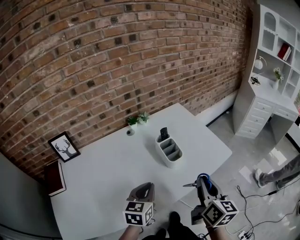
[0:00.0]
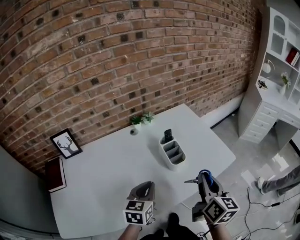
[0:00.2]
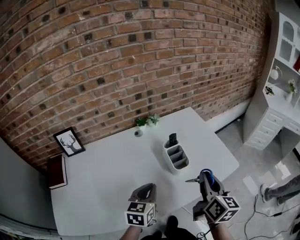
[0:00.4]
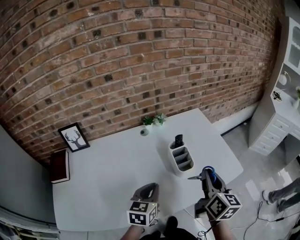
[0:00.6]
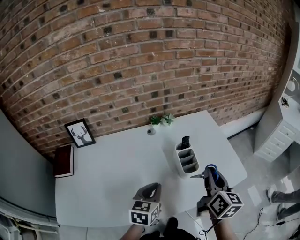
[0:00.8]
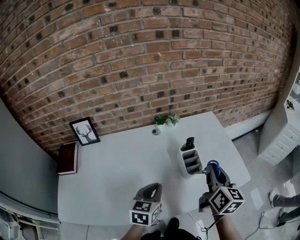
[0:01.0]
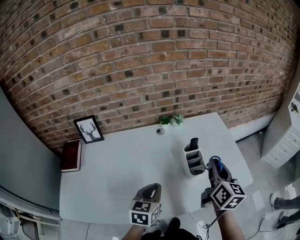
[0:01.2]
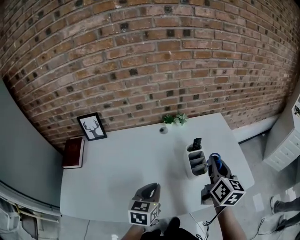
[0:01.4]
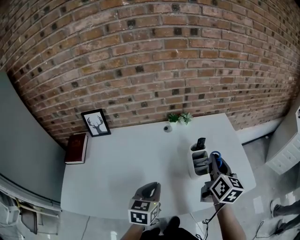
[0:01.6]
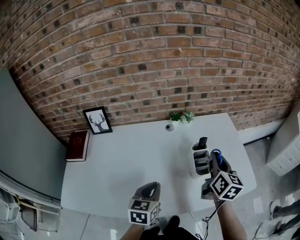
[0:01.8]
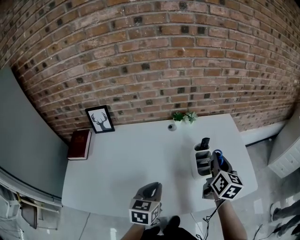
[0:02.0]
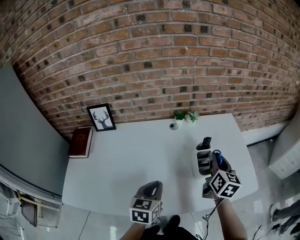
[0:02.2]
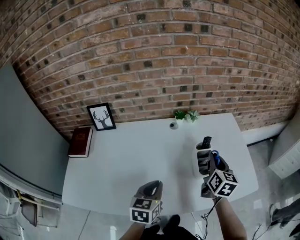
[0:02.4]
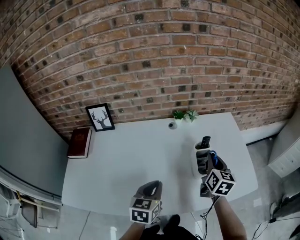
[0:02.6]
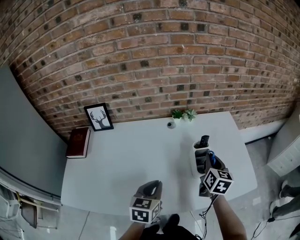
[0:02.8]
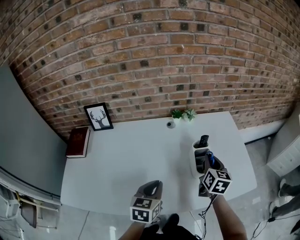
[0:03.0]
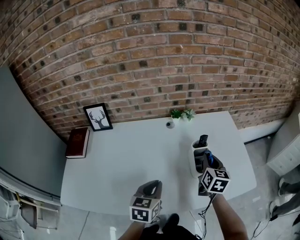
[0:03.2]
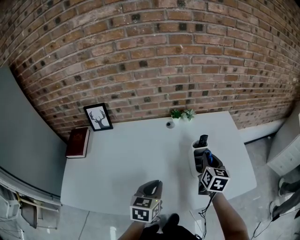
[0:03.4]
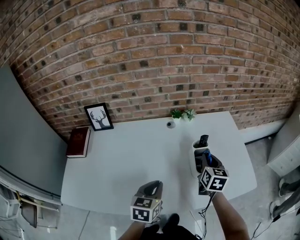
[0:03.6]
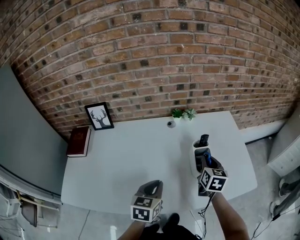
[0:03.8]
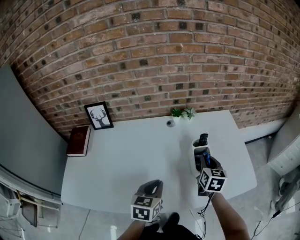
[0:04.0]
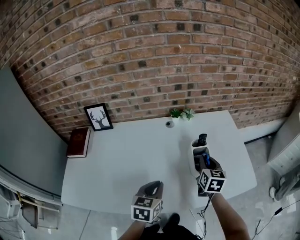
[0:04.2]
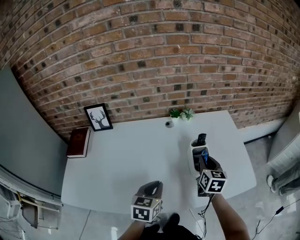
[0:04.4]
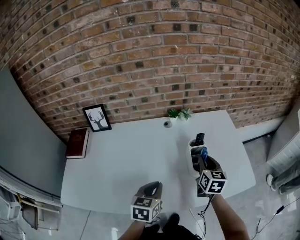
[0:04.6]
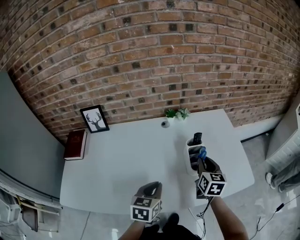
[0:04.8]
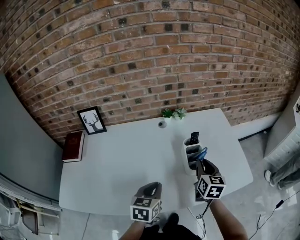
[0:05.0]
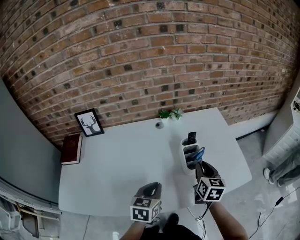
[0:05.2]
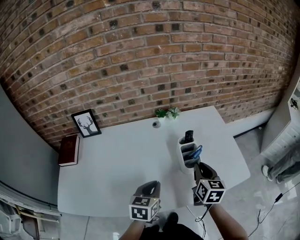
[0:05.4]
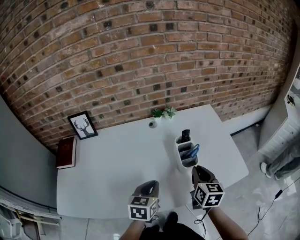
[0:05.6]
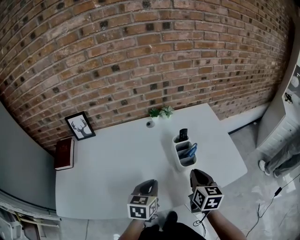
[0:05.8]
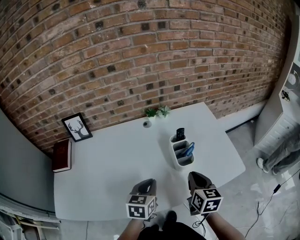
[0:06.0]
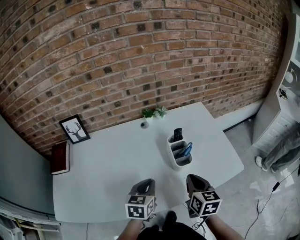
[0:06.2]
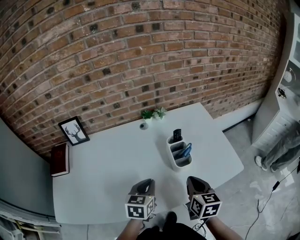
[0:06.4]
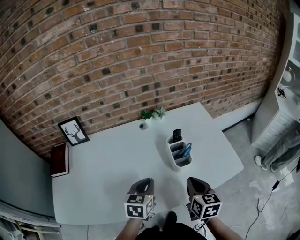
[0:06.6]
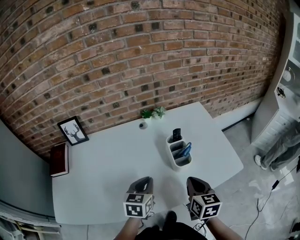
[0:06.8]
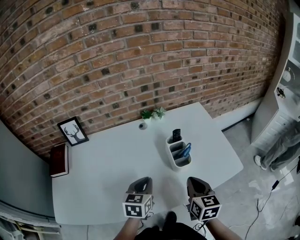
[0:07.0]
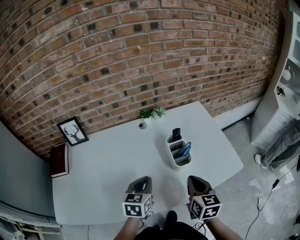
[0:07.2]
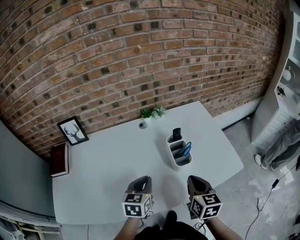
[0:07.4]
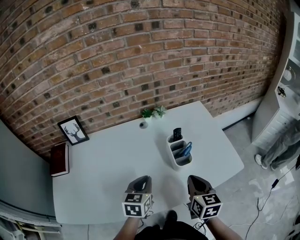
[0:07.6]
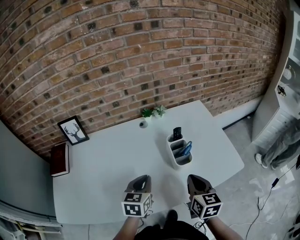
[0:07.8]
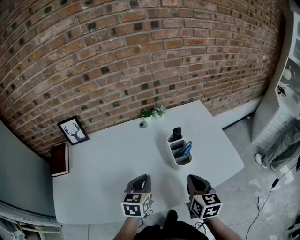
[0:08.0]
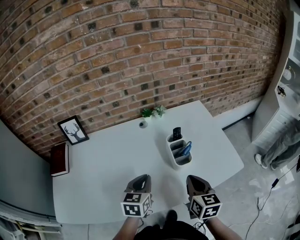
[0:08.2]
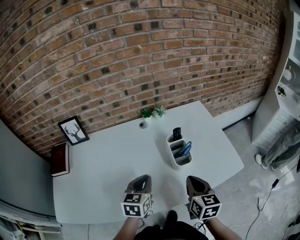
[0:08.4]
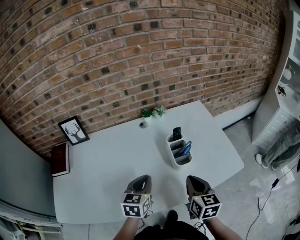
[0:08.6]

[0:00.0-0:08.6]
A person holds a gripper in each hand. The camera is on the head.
0.0 to 1.4 s: The left gripper shifts by about 5 cm, while the right gripper heads forward, covering some 20 cm.
1.4 to 2.8 s: The right gripper is displaced downward by about 10 cm.
2.8 to 4.4 s: The grippers make only small movements.
4.4 to 5.8 s: The right gripper goes approximately 10 cm backward.
5.8 to 7.2 s: The grippers make only small movements.
7.2 to 8.6 s: Both grippers stay about where they are.

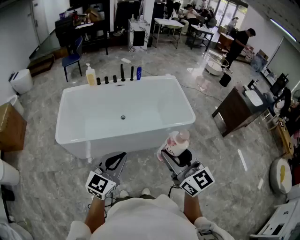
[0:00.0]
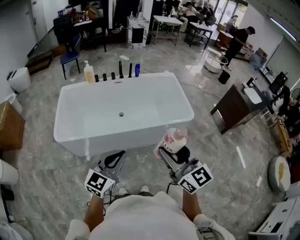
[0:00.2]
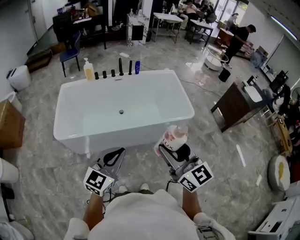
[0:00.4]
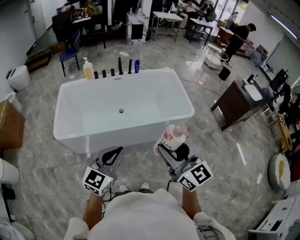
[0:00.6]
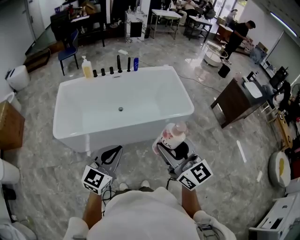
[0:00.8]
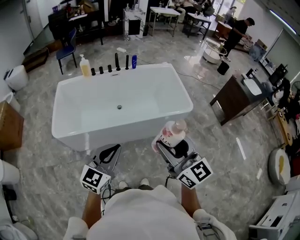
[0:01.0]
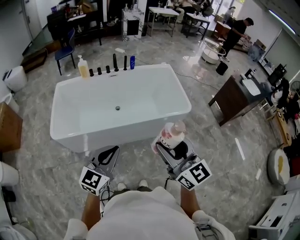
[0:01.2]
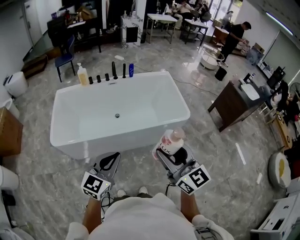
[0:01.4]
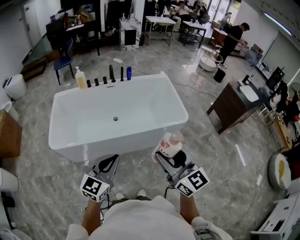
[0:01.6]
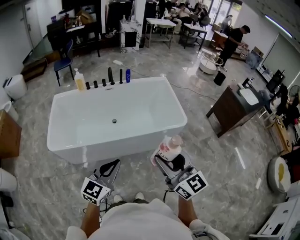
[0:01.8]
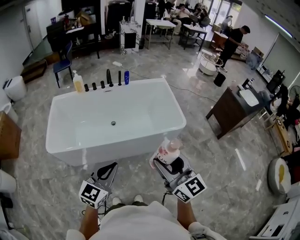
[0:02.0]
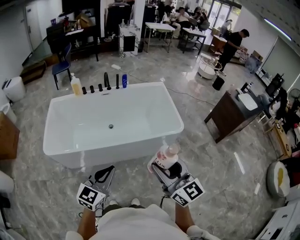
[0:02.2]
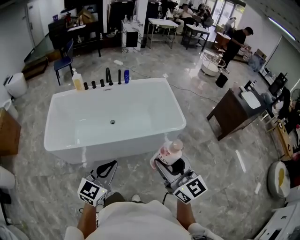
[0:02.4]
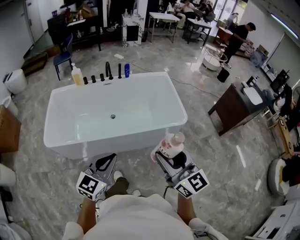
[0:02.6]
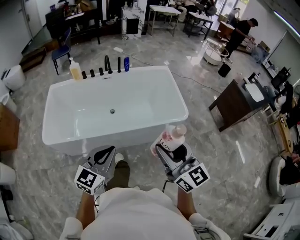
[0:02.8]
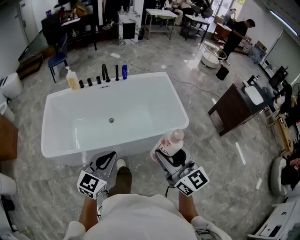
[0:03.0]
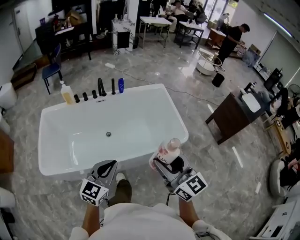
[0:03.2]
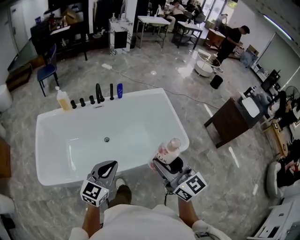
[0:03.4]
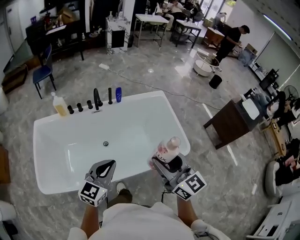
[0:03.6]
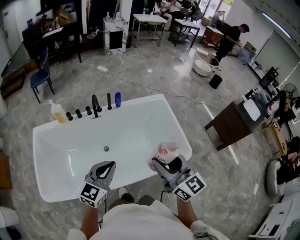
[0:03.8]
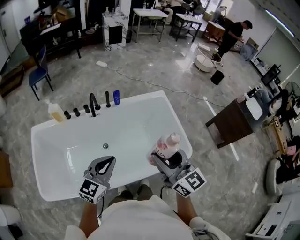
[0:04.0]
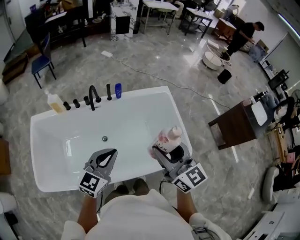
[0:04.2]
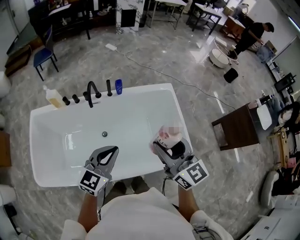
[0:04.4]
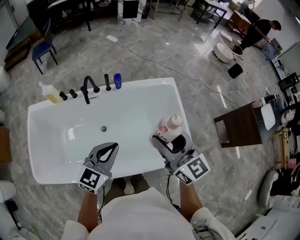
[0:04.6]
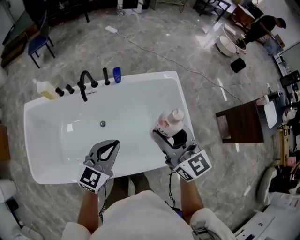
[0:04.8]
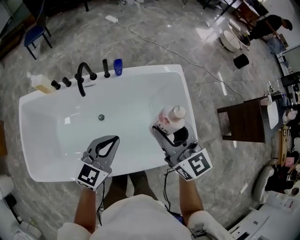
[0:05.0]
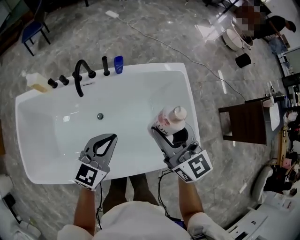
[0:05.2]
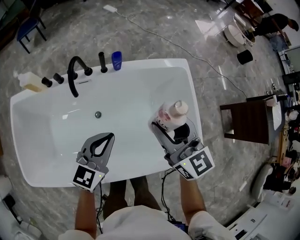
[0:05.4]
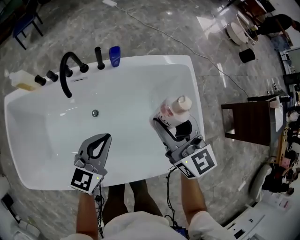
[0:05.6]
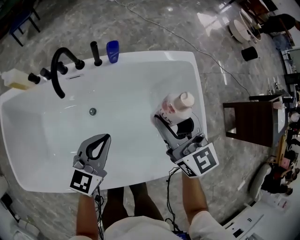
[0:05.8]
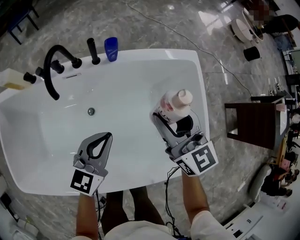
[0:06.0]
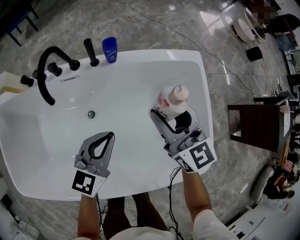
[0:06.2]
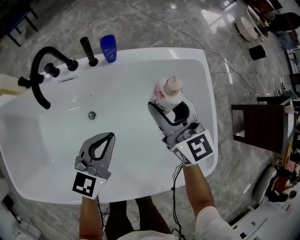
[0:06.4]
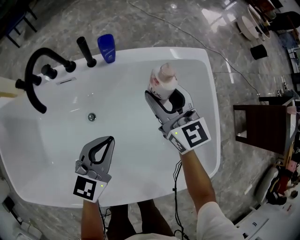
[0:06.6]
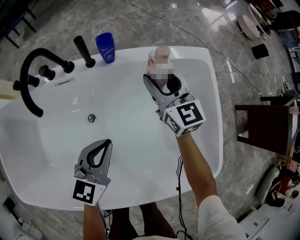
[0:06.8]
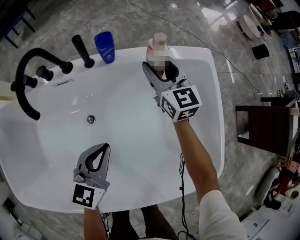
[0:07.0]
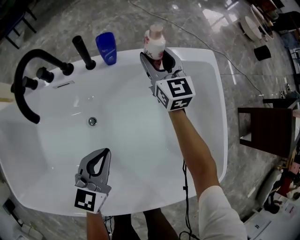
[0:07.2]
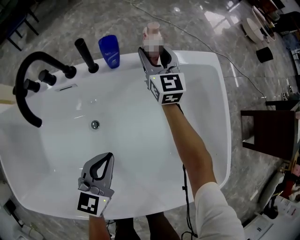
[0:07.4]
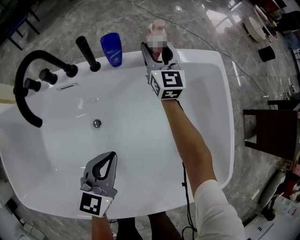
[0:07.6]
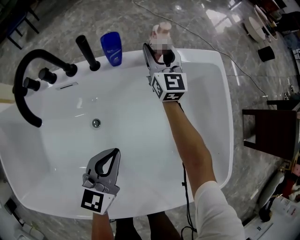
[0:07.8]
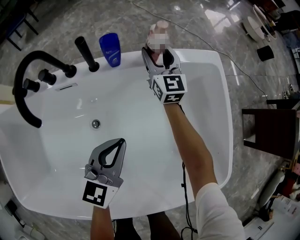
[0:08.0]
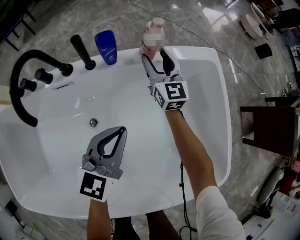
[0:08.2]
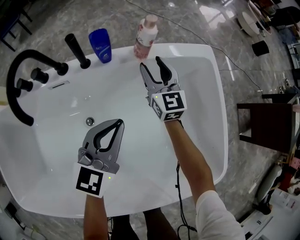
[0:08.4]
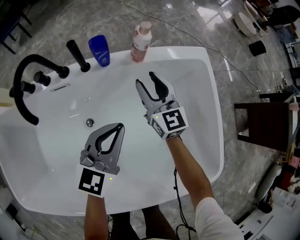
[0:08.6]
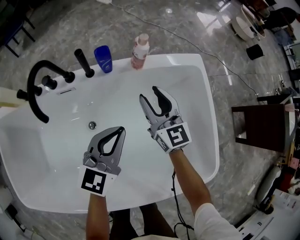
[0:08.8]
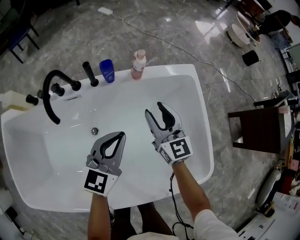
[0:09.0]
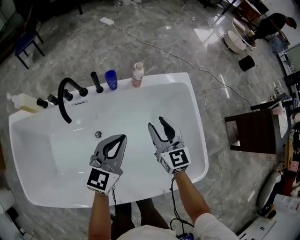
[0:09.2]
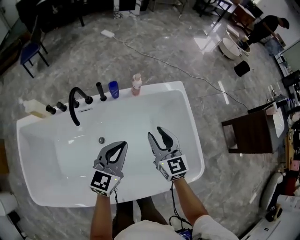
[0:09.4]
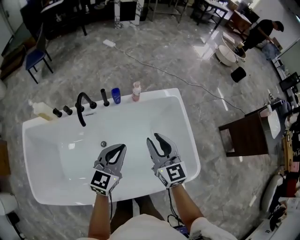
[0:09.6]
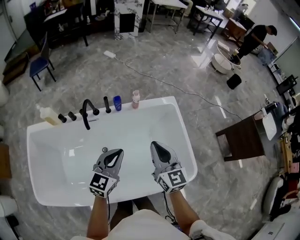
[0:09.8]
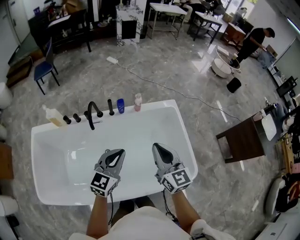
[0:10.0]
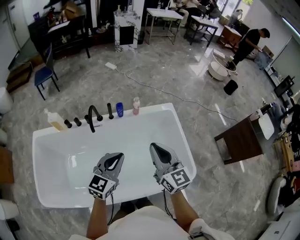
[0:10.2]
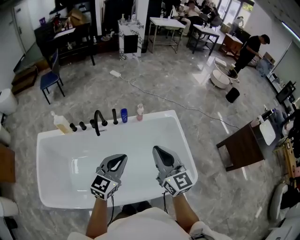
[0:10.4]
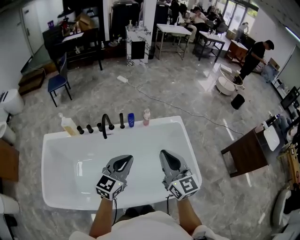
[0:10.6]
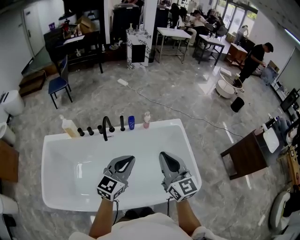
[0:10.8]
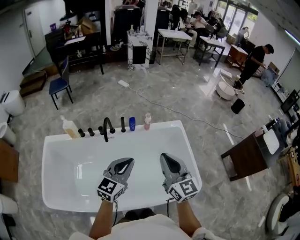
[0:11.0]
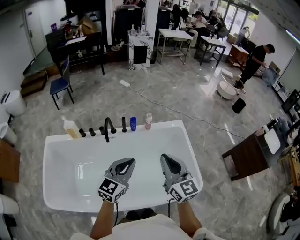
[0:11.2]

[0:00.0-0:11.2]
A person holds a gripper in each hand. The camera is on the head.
0.0 to 1.6 s: The grippers make only small movements.
1.6 to 3.2 s: Both grippers travel together forward, approximately 20 cm.
3.2 to 4.8 s: Both grippers travel together forward, some 40 cm.
4.8 to 6.4 s: Both grippers travel together downward and forward, about 35 cm.
6.4 to 8.0 s: The right gripper travels forward and downward by about 25 cm. The left gripper is displaced downward by some 5 cm.
8.0 to 9.6 s: The left gripper goes approximately 25 cm upward. Meanwhile the right gripper shifts some 50 cm backward and upward, and closes.
9.6 to 11.2 s: The grippers both shift upward and backward by about 20 cm. The right gripper closes.

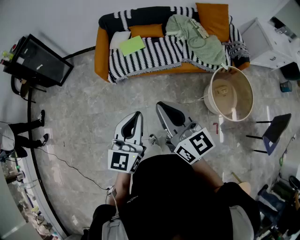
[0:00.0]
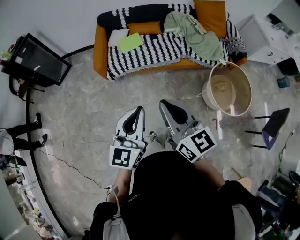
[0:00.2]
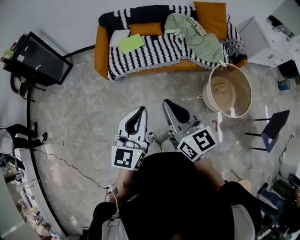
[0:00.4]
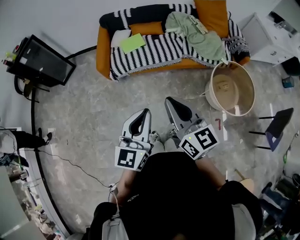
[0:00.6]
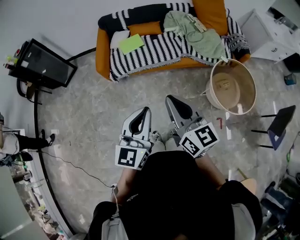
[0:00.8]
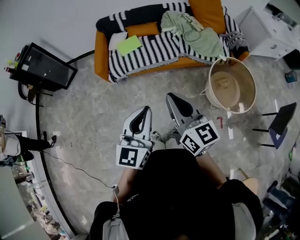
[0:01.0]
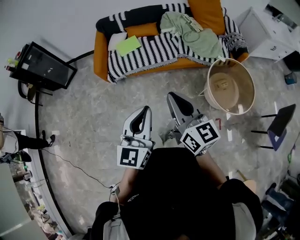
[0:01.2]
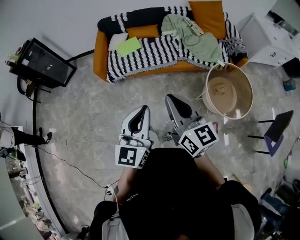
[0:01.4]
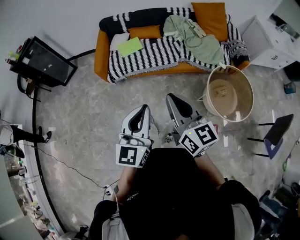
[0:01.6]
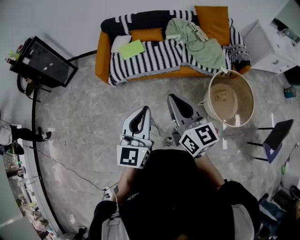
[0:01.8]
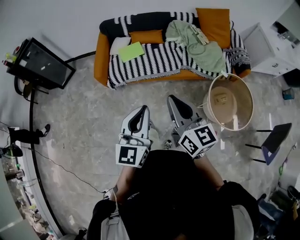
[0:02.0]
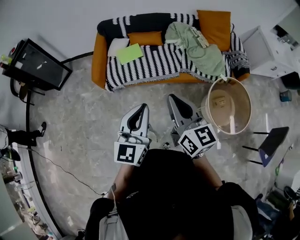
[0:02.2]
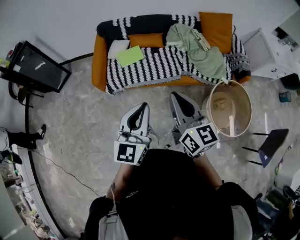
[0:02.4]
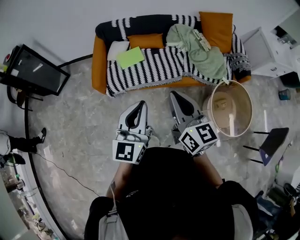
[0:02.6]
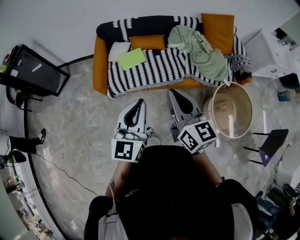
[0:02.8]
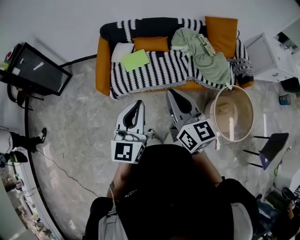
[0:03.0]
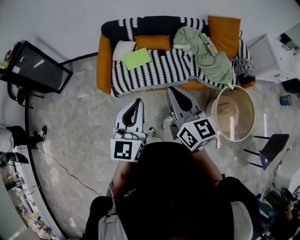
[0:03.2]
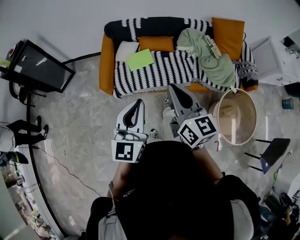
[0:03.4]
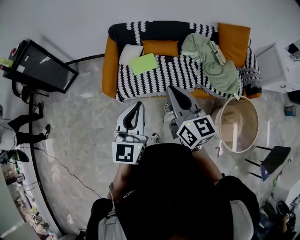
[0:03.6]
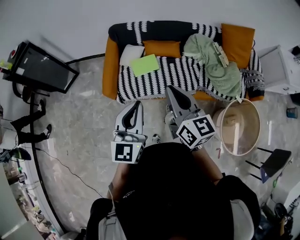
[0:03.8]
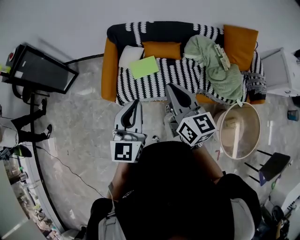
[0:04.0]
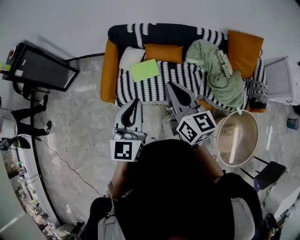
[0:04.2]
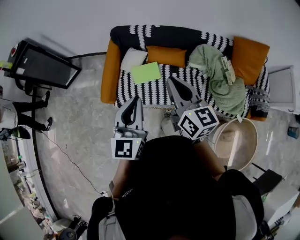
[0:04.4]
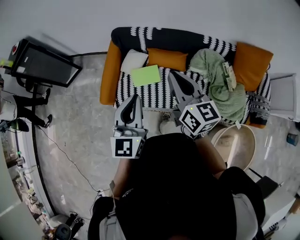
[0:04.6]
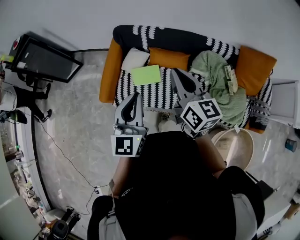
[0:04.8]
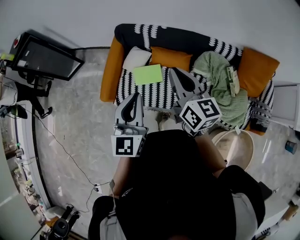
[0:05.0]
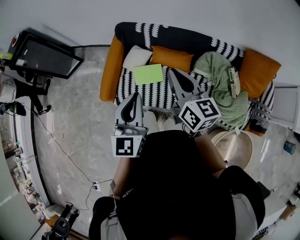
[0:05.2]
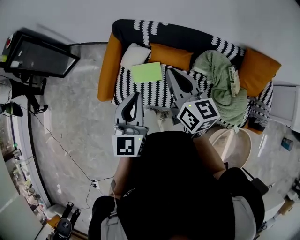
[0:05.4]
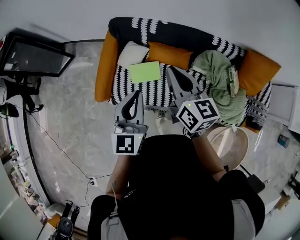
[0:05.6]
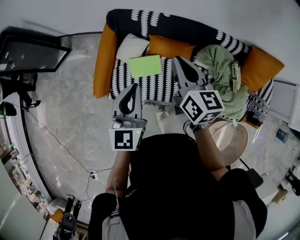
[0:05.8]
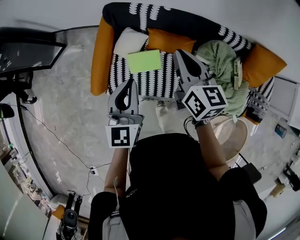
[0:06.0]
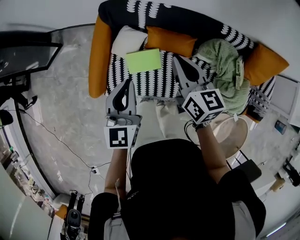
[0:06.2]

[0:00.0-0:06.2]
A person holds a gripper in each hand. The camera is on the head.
0.0 to 1.6 s: Both grippers travel together to the right, about 10 cm.
1.6 to 3.2 s: The two grippers go about 30 cm forward and to the left.
3.2 to 4.6 s: The grippers both shift forward by some 30 cm.
4.6 to 6.2 s: Both grippers travel together forward and downward, approximately 25 cm.
